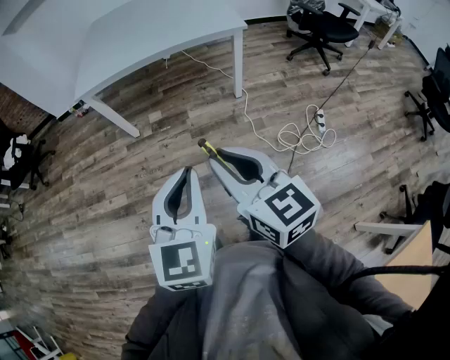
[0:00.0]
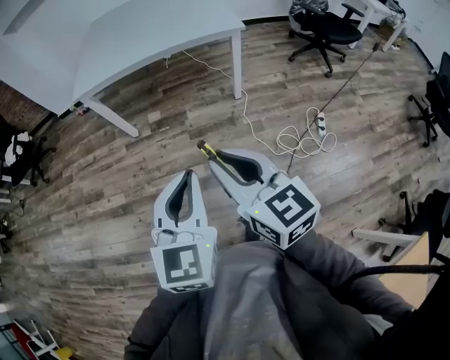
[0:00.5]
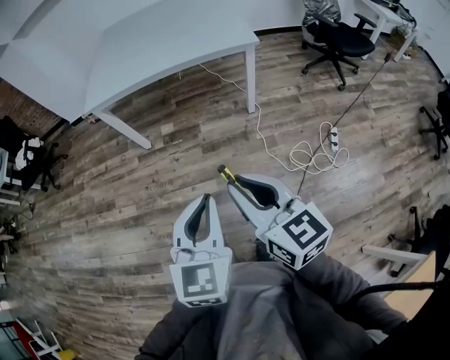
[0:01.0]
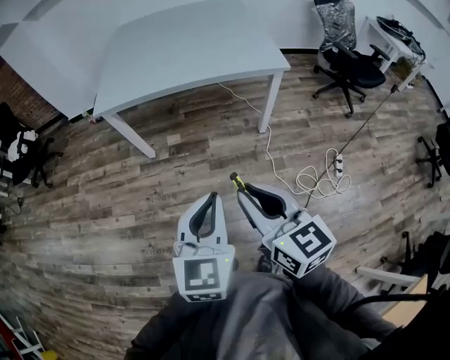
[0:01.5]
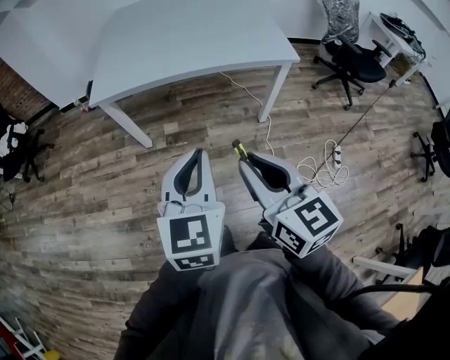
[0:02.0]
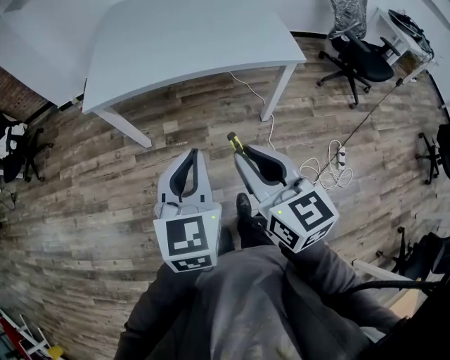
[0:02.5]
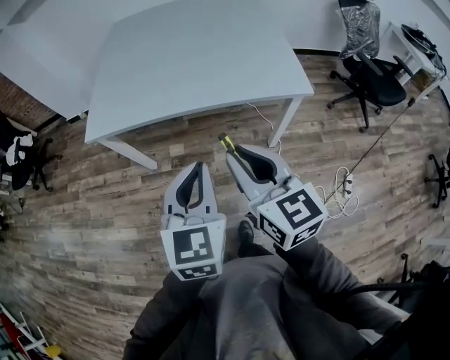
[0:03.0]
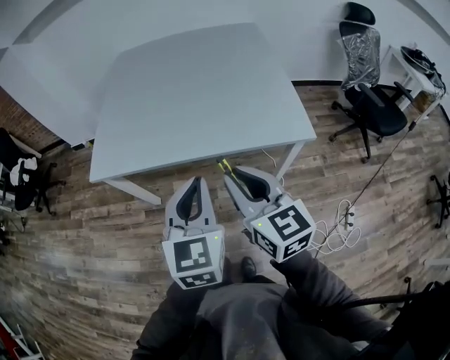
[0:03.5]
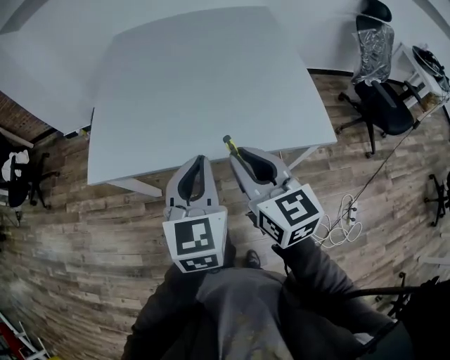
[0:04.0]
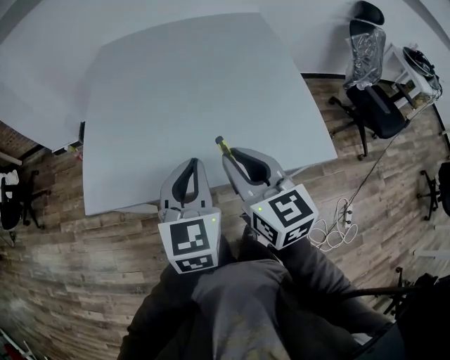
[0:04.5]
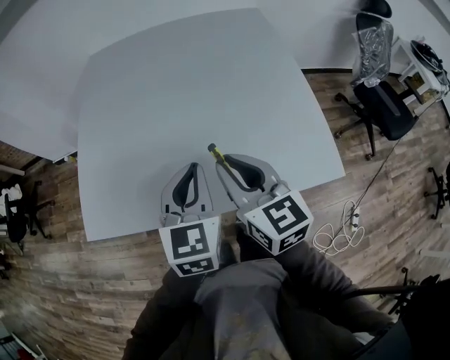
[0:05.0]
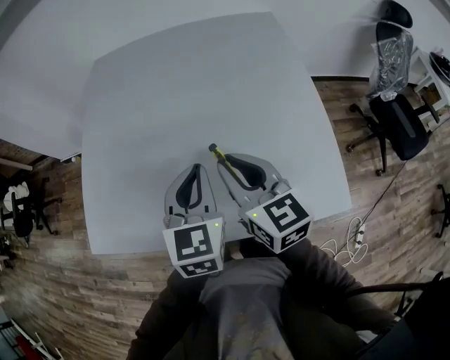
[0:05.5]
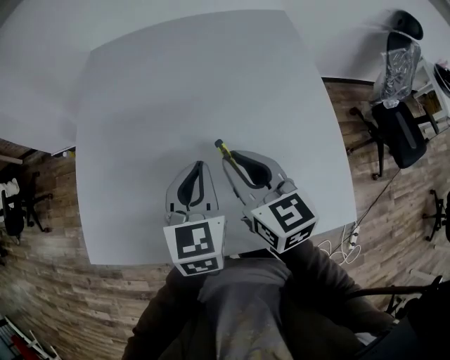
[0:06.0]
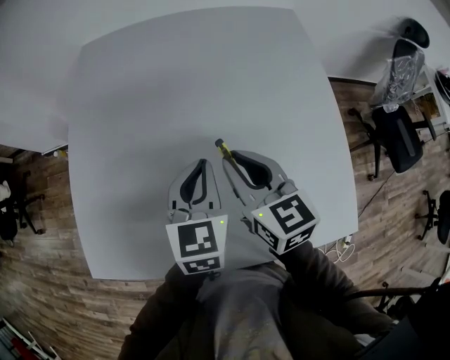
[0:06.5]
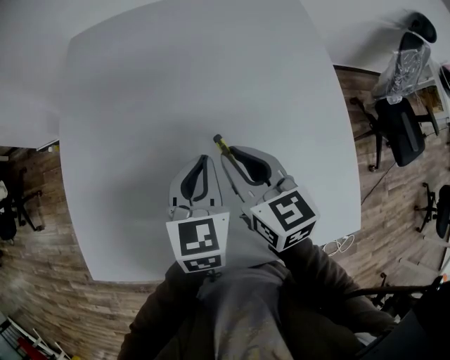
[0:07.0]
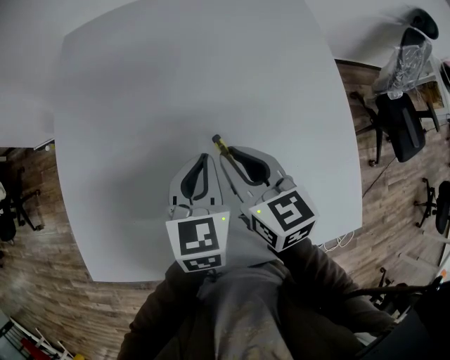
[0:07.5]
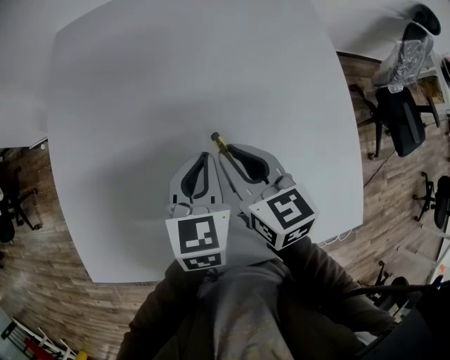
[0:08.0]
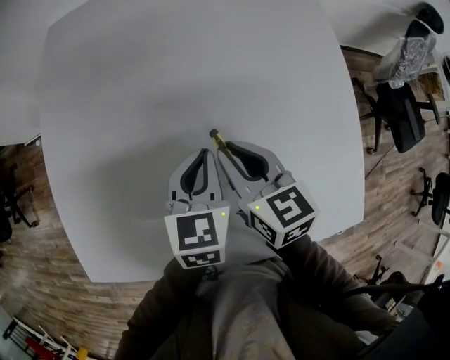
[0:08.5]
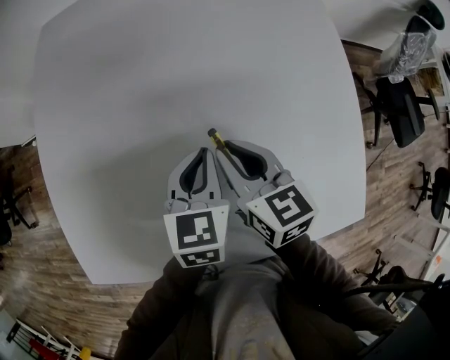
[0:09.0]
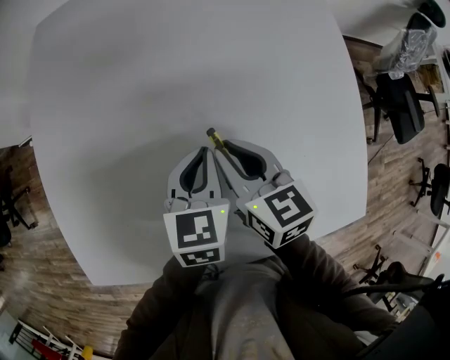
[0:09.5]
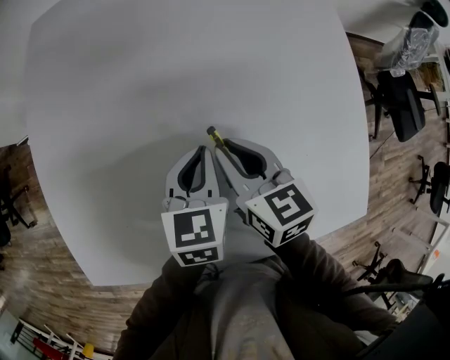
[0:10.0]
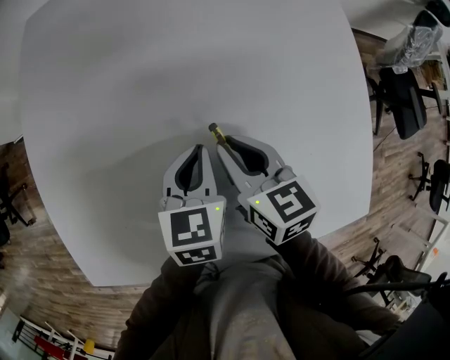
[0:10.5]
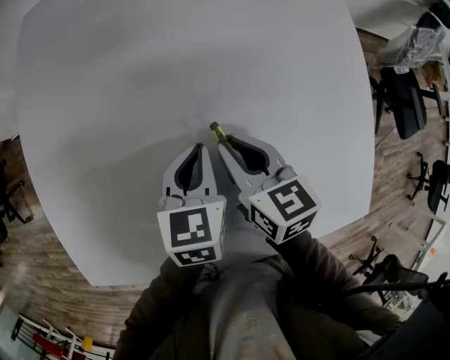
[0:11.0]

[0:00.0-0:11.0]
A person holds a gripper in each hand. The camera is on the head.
0:00.0 to 0:02.0: The grippers both shift forward by some 25 cm.
0:02.0 to 0:03.5: The left gripper goes about 30 cm forward and to the right, while the right gripper goes about 30 cm forward.
0:03.5 to 0:05.5: The two grippers go roughly 40 cm forward.
0:05.5 to 0:07.5: Both grippers travel together forward and downward, roughly 20 cm.
0:07.5 to 0:09.0: Both grippers travel together downward, approximately 5 cm.
0:09.0 to 0:11.0: The two grippers go about 5 cm downward.

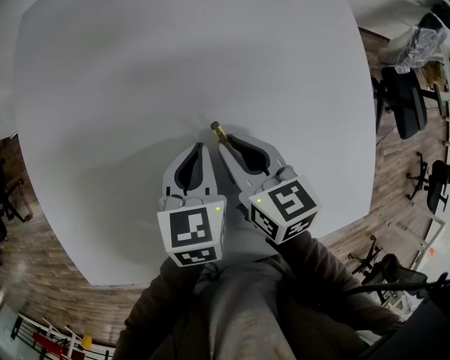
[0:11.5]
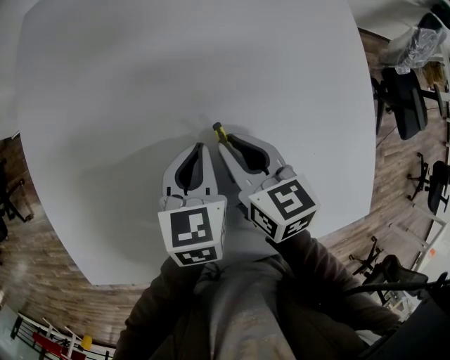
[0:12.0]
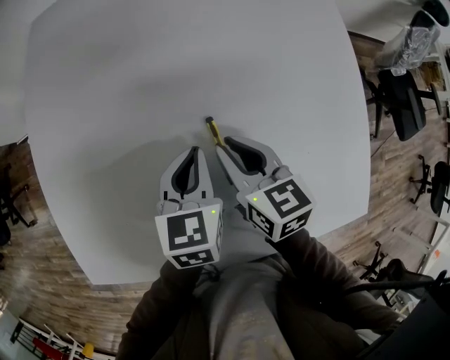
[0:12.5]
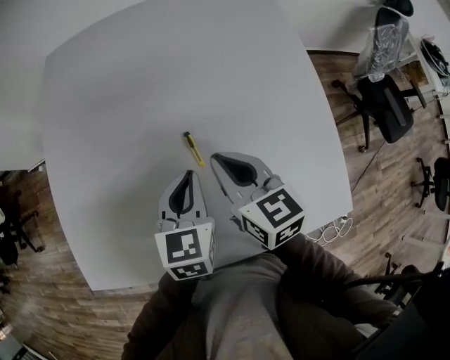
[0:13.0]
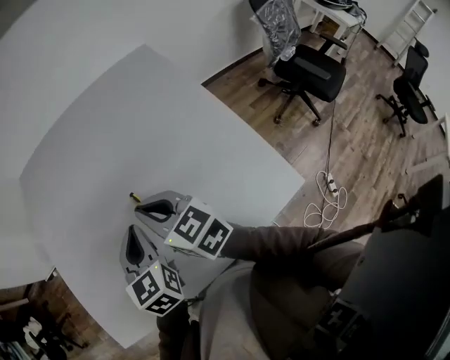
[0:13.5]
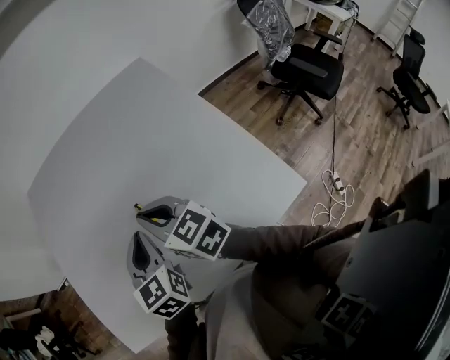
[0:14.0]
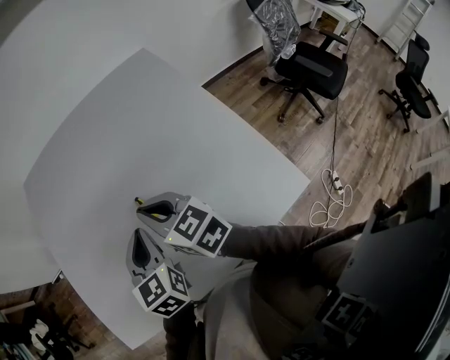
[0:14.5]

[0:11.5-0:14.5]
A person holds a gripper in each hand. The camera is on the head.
0:11.5 to 0:13.0: The right gripper travels upward by about 10 cm. Meanwhile the left gripper moves upward and backward, about 10 cm.
0:13.0 to 0:14.5: The grippers both shift upward by approximately 10 cm.

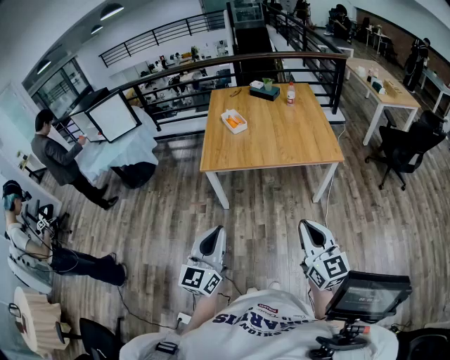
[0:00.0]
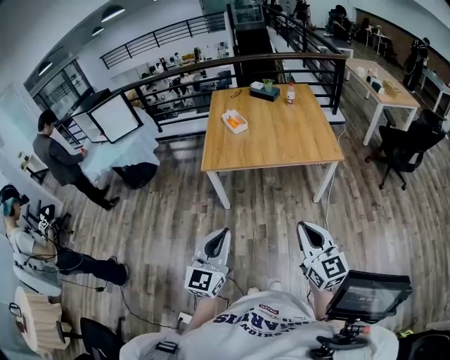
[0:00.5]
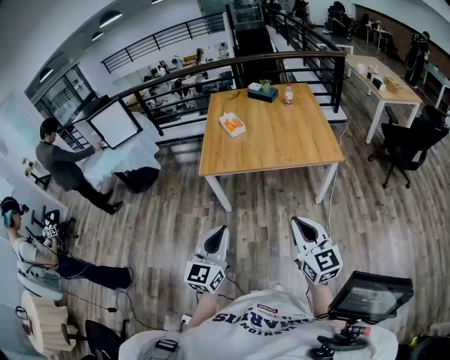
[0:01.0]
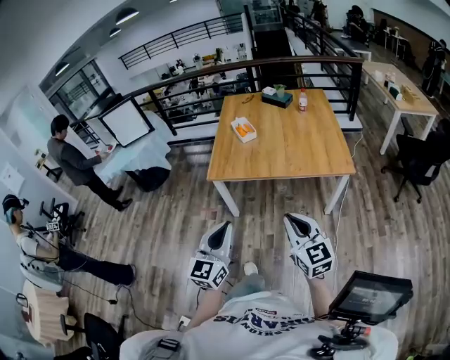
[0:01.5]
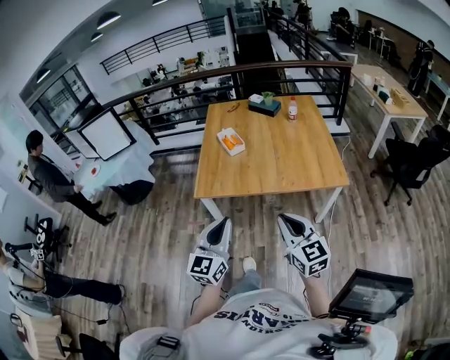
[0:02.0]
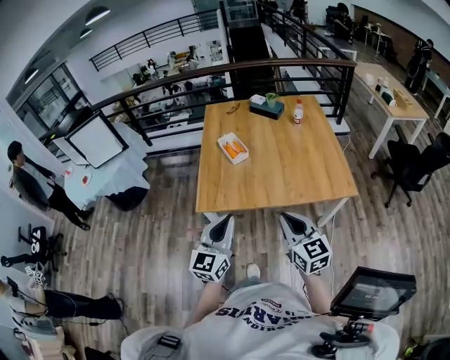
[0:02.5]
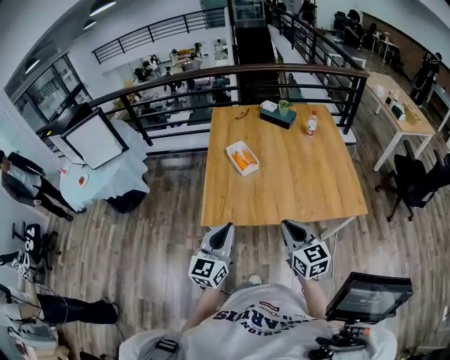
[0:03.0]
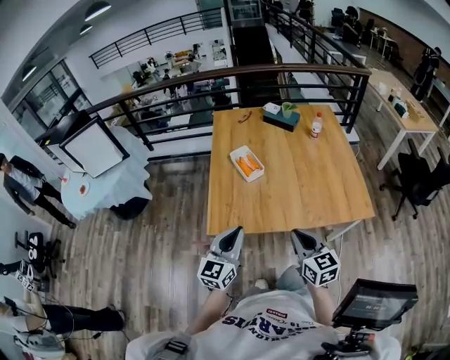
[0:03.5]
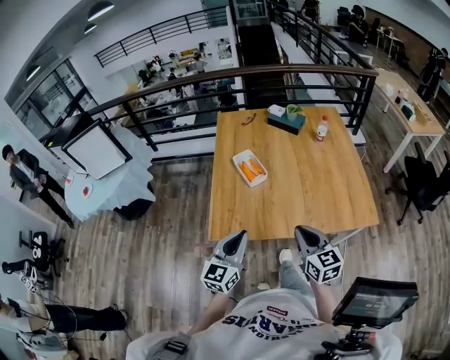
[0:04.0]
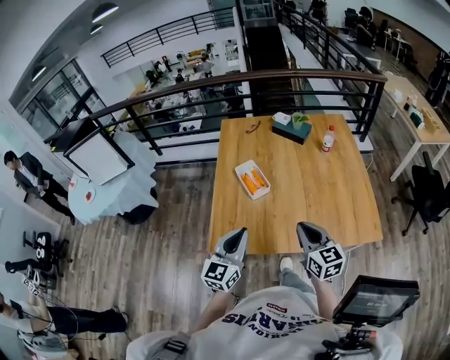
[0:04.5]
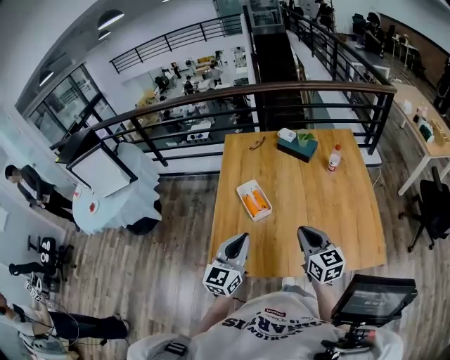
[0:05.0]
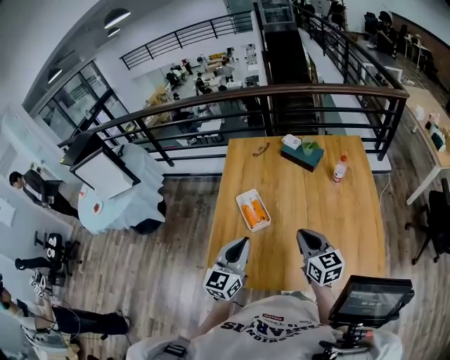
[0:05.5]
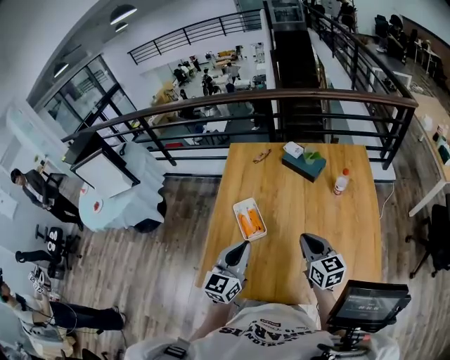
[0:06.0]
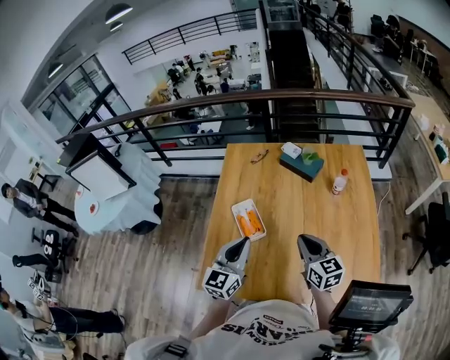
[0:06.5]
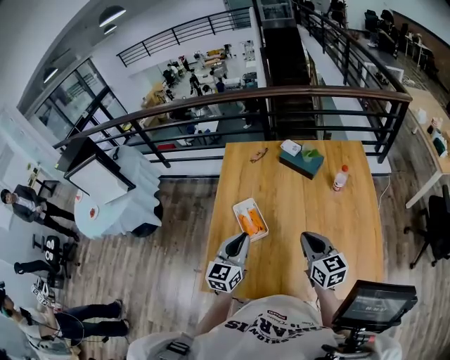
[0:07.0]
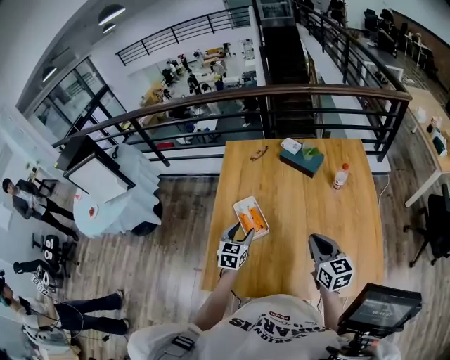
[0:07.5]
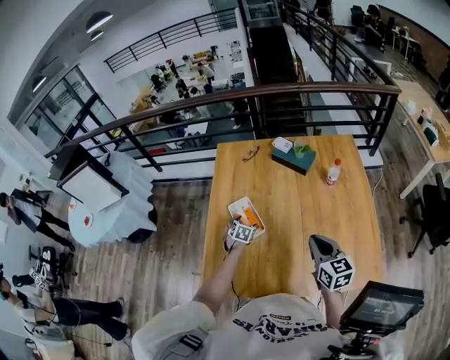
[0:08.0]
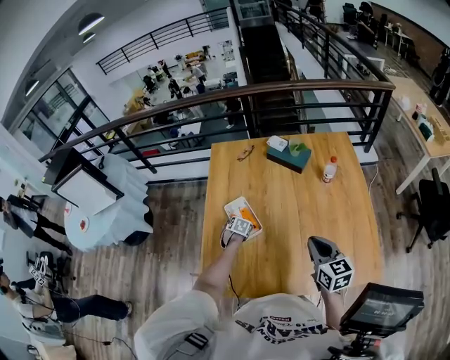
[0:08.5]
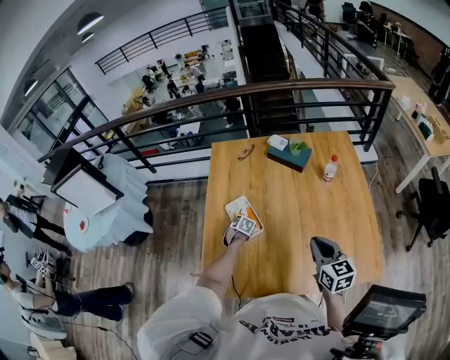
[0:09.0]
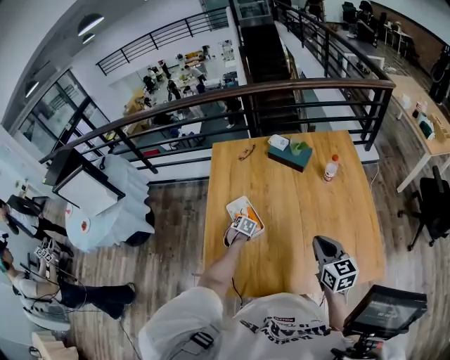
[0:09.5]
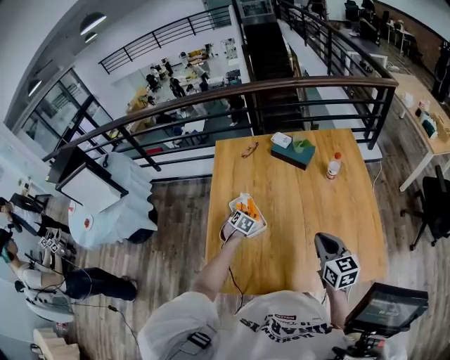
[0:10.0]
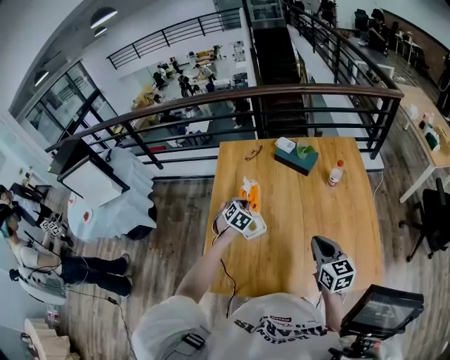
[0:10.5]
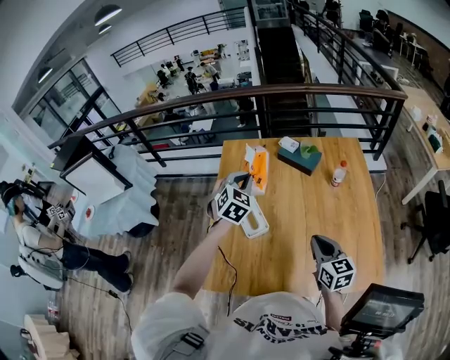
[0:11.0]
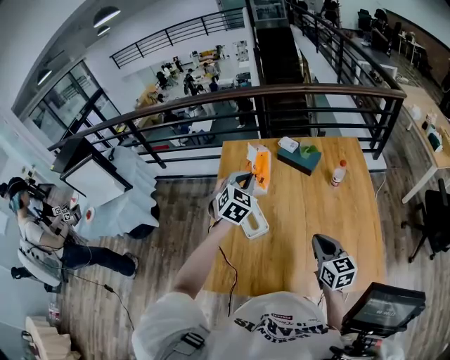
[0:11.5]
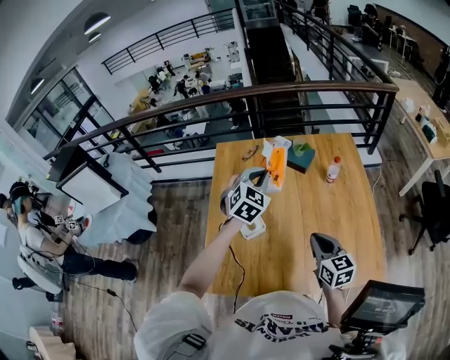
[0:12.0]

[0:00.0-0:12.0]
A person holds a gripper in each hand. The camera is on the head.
0:00.0 to 0:02.0: Both grippers travel together forward, some 20 cm.
0:02.0 to 0:04.0: Both grippers travel together forward, some 30 cm.
0:04.0 to 0:06.0: The left gripper travels forward and to the right by roughly 30 cm, while the right gripper travels forward by some 30 cm.
0:06.0 to 0:08.0: The left gripper travels downward and forward by roughly 35 cm, angles its fingers downward, by about 50 degrees, and opens.
0:08.0 to 0:10.0: The left gripper reaches about 10 cm downward, then returns, and closes its fingers.
0:10.0 to 0:12.0: The left gripper travels upward by roughly 35 cm, and tilts its fingers roughly 30 degrees upward.

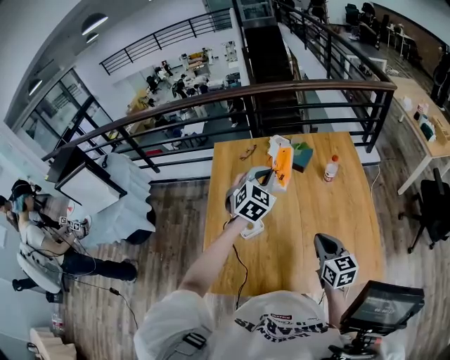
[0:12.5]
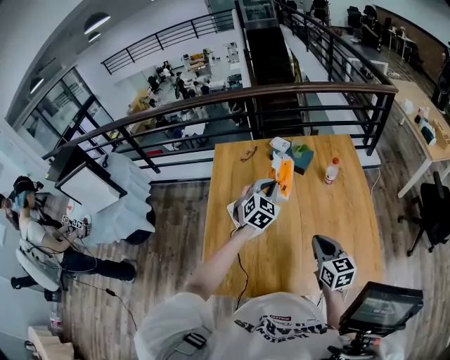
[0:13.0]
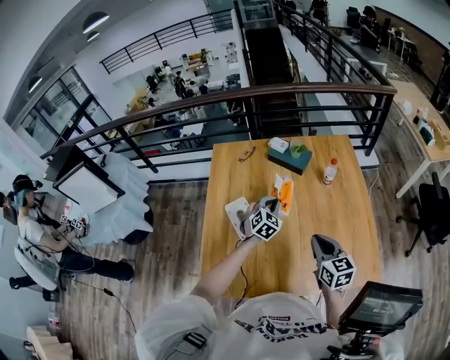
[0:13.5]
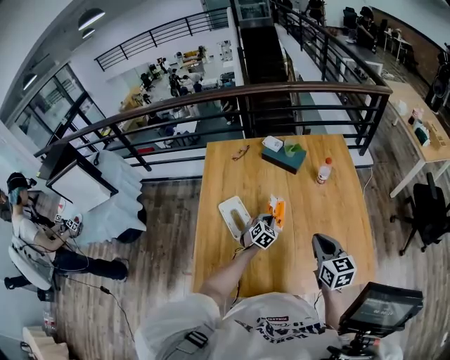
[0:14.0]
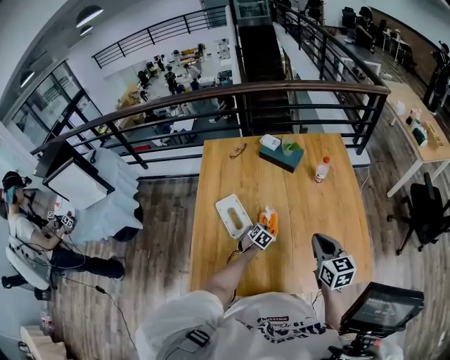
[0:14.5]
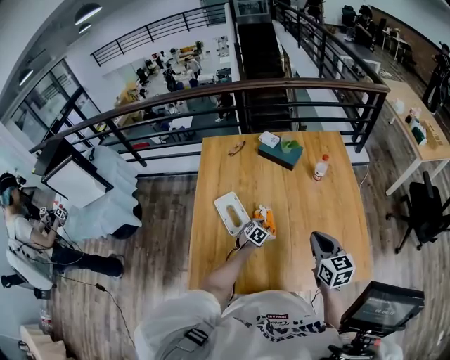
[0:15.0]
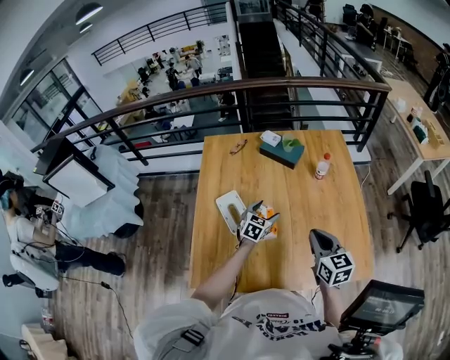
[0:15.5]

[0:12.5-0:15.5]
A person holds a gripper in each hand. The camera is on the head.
0:12.5 to 0:14.0: The left gripper is displaced downward by roughly 35 cm.
0:14.0 to 0:15.5: The left gripper moves upward, some 5 cm, turns by some 20 degrees, and opens its fingers.
